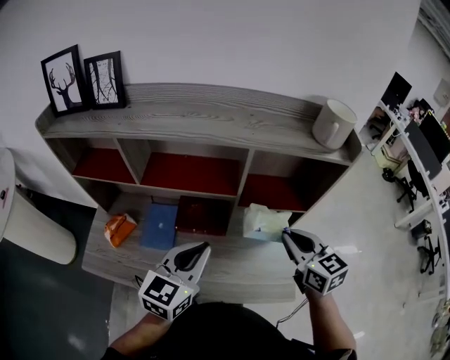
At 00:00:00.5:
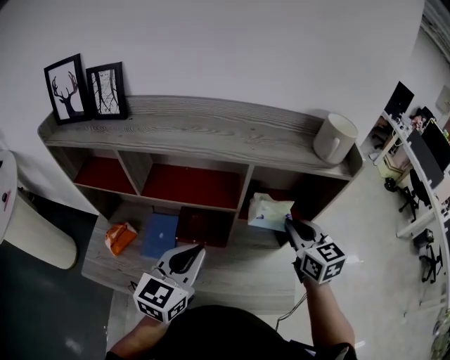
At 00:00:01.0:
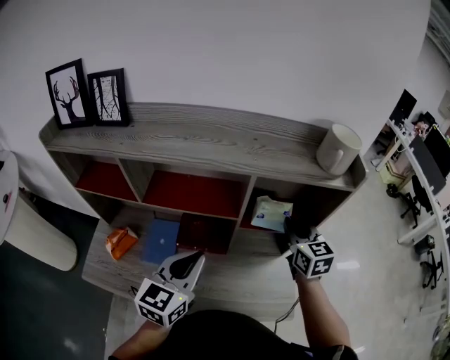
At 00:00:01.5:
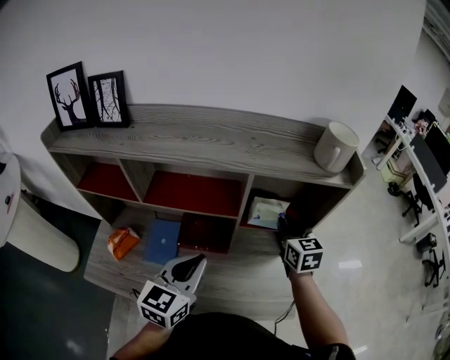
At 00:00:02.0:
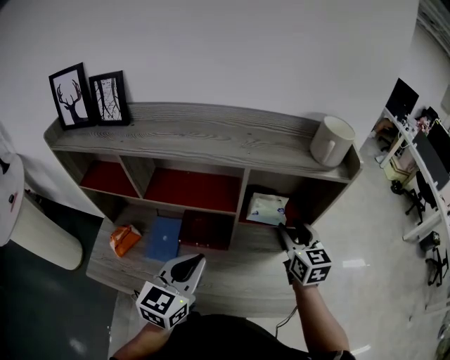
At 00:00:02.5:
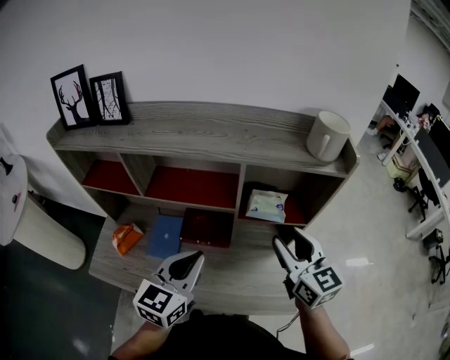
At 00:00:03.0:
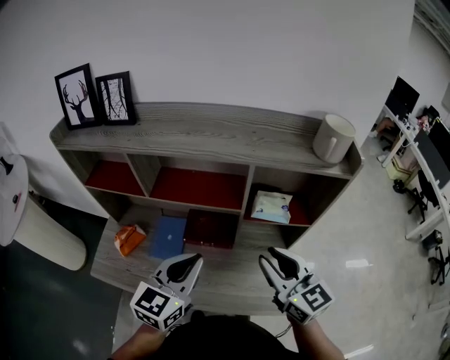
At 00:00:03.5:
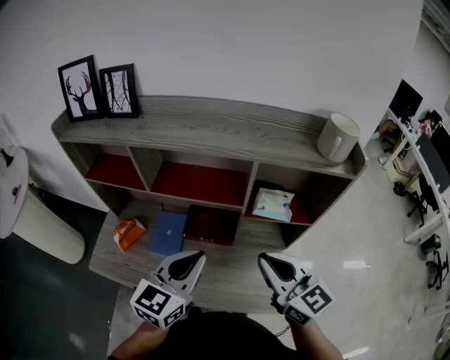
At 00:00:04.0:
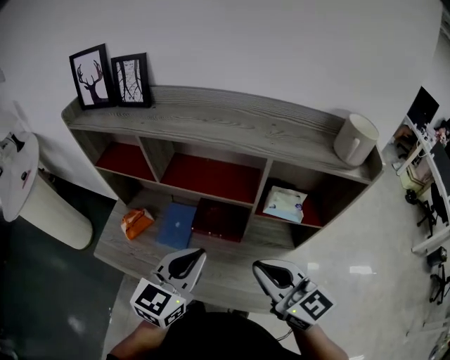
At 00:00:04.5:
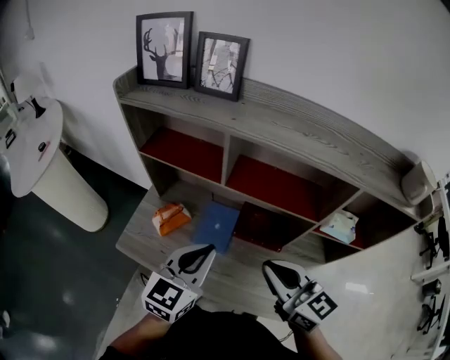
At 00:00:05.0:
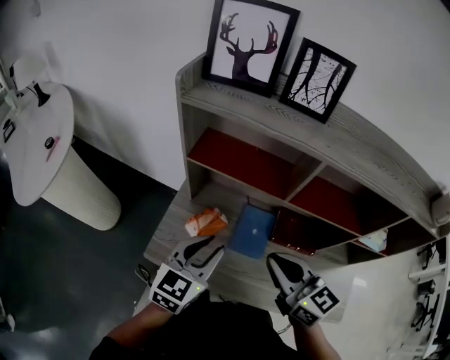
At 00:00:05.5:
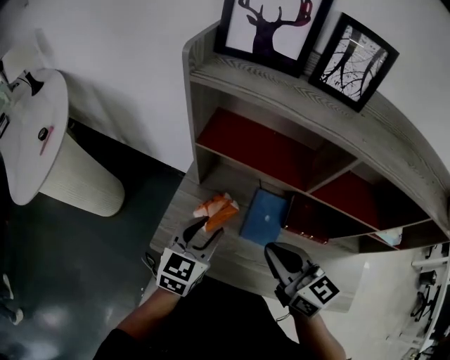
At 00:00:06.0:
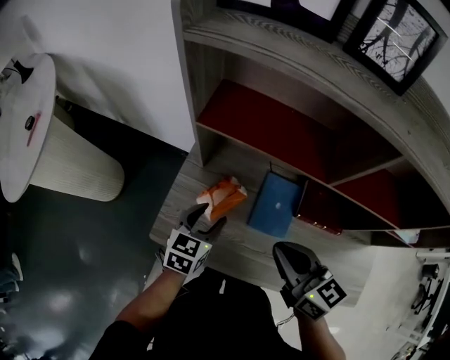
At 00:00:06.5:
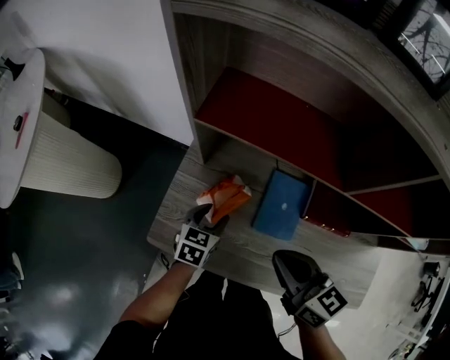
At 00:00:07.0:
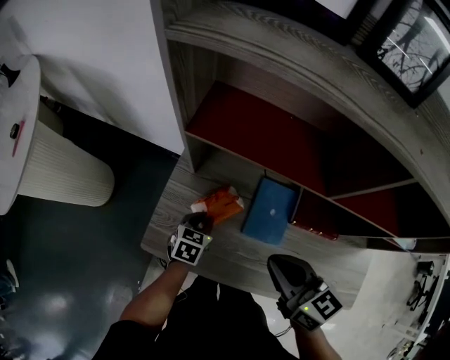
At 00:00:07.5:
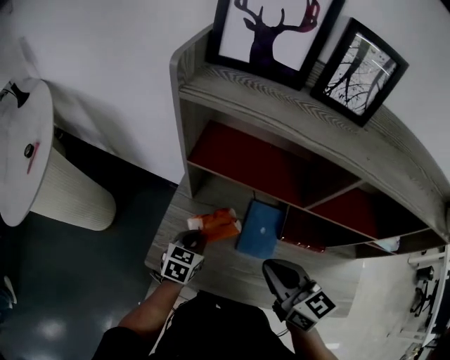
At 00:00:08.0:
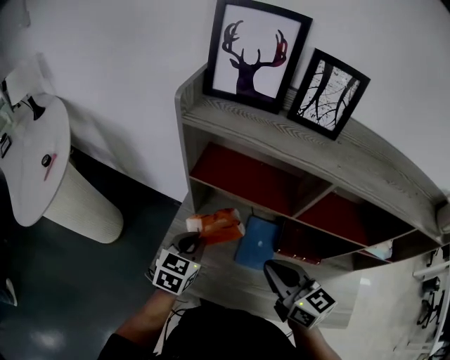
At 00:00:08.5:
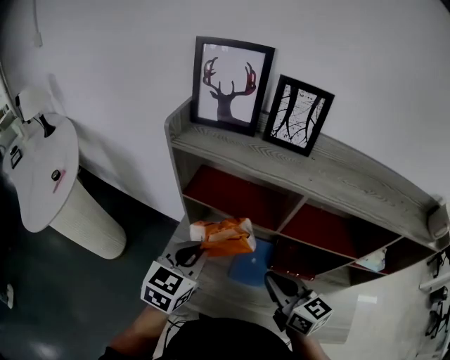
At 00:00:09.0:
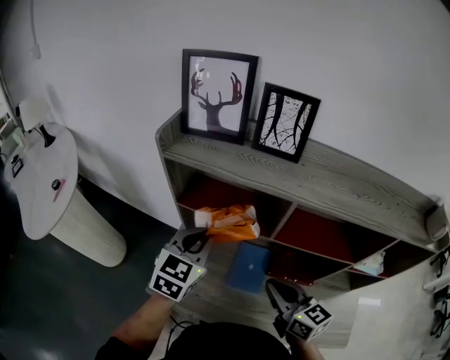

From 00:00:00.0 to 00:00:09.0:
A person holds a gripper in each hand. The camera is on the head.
From 00:00:00.0 to 00:00:02.0: The right gripper shifts approximately 10 cm forward, and opens.
From 00:00:02.0 to 00:00:04.5: The left gripper moves to the left, some 20 cm, while the right gripper travels to the left by roughly 30 cm, rotates some 40 degrees, and closes up.
From 00:00:04.5 to 00:00:07.0: The right gripper travels to the left, downward and forward by about 25 cm; the left gripper moves downward, to the left and forward, some 40 cm, points its fingers some 30 degrees further downward, and opens, then closes again.
From 00:00:07.0 to 00:00:09.0: The left gripper travels upward by approximately 35 cm, and turns by about 30 degrees. Meanwhile the right gripper travels upward and to the right by about 10 cm.

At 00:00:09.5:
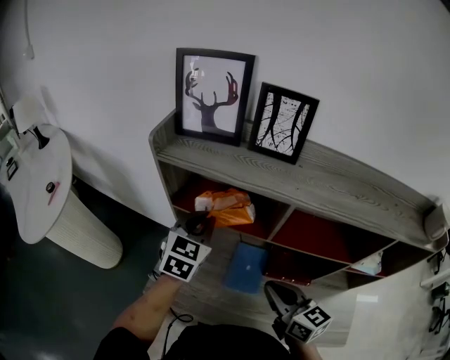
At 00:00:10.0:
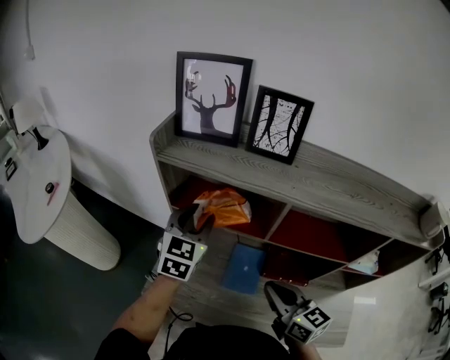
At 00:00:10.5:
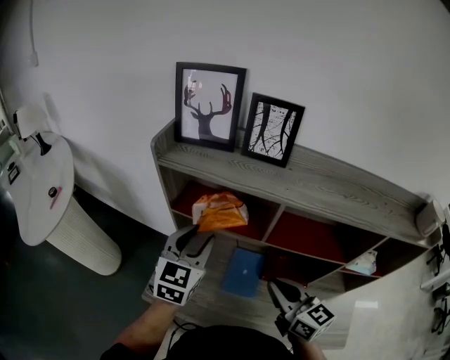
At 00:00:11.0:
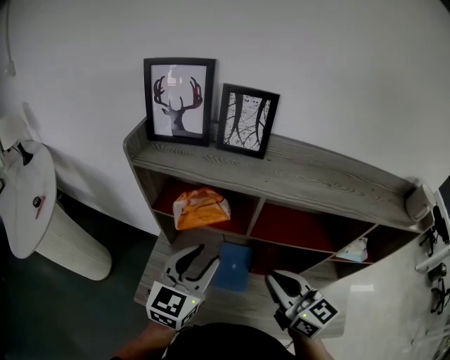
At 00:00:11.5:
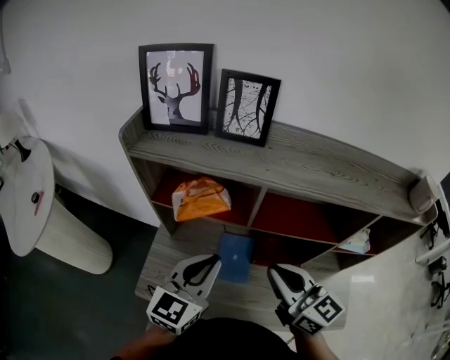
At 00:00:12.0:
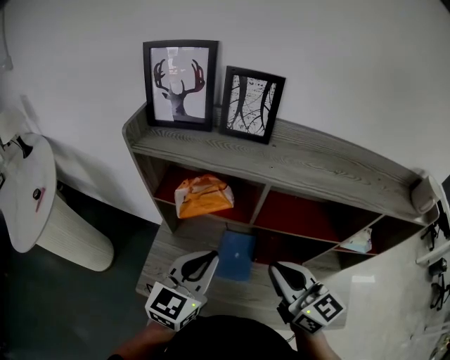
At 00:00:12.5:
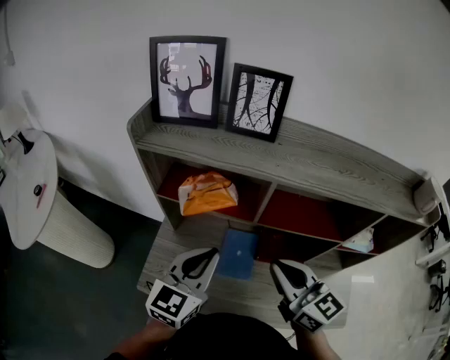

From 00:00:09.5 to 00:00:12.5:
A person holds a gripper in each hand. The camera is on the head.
From 00:00:09.5 to 00:00:11.0: The left gripper goes roughly 10 cm backward, and opens up; the right gripper shifts about 5 cm upward.
From 00:00:11.0 to 00:00:12.5: The left gripper closes.

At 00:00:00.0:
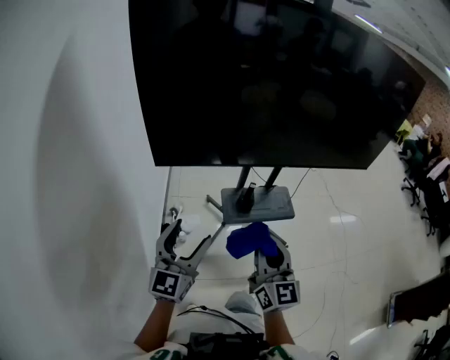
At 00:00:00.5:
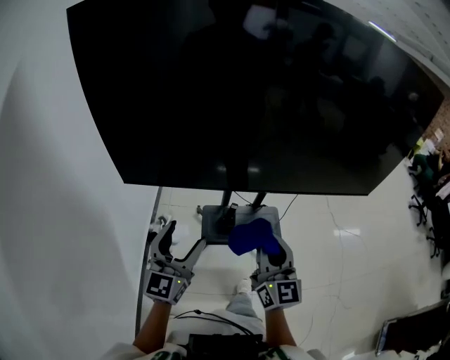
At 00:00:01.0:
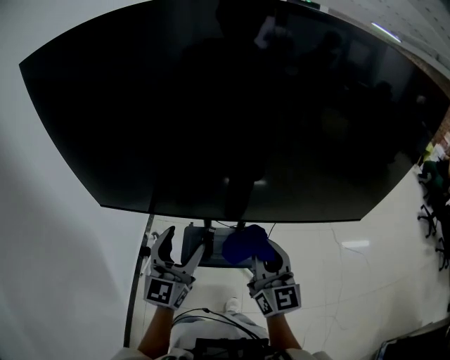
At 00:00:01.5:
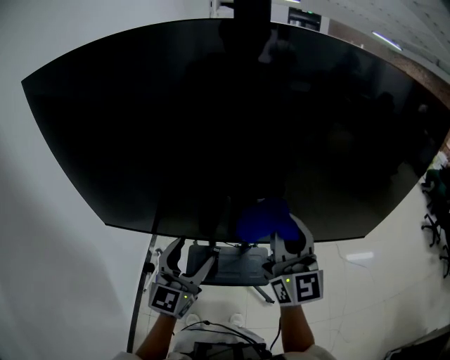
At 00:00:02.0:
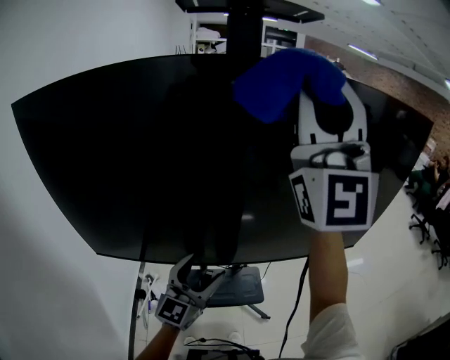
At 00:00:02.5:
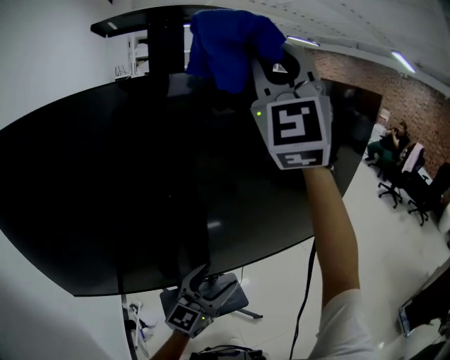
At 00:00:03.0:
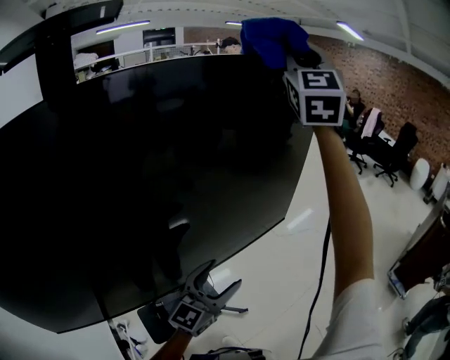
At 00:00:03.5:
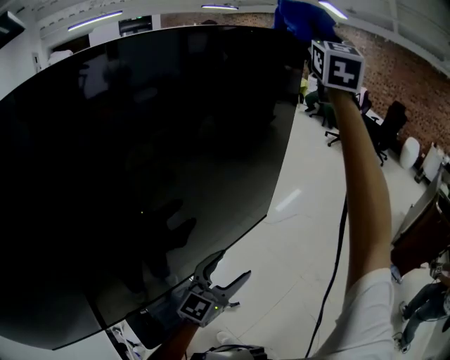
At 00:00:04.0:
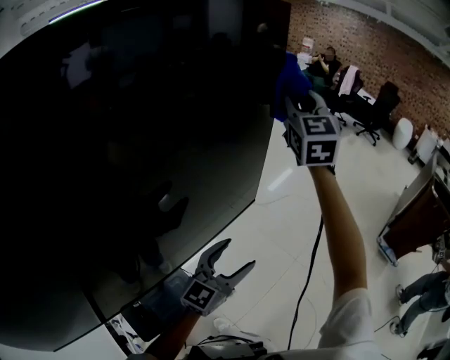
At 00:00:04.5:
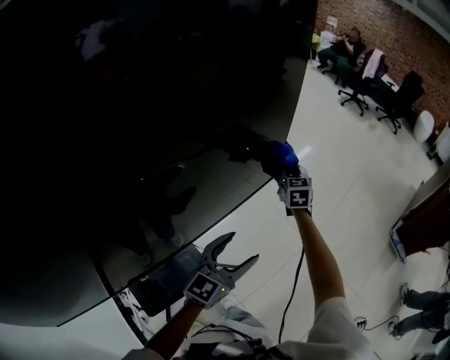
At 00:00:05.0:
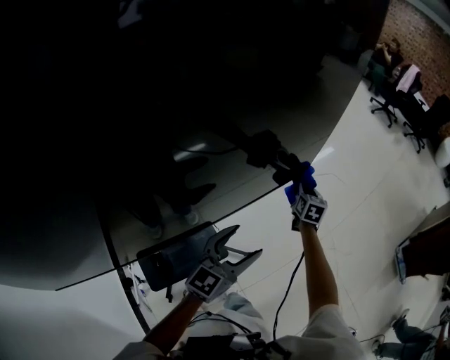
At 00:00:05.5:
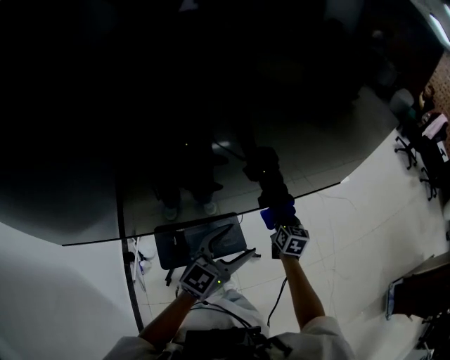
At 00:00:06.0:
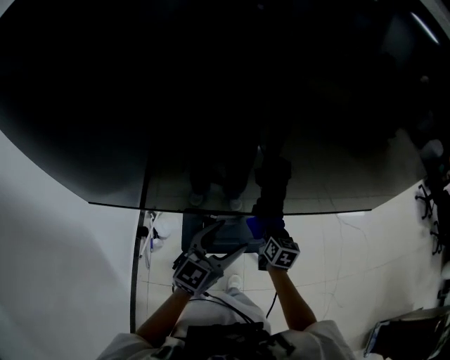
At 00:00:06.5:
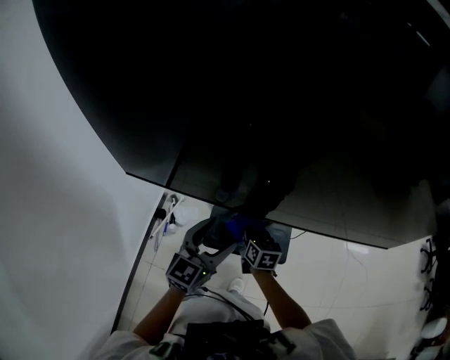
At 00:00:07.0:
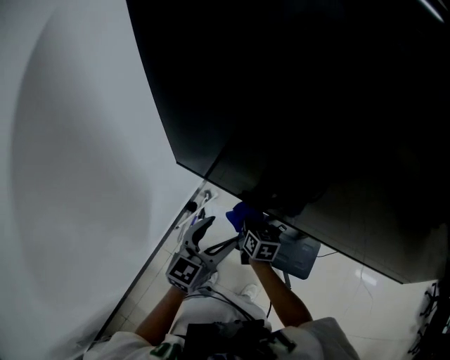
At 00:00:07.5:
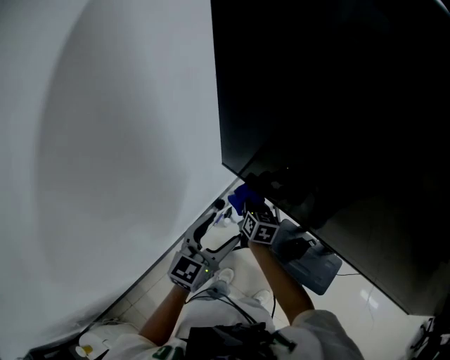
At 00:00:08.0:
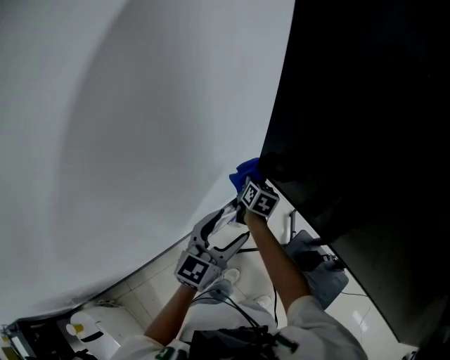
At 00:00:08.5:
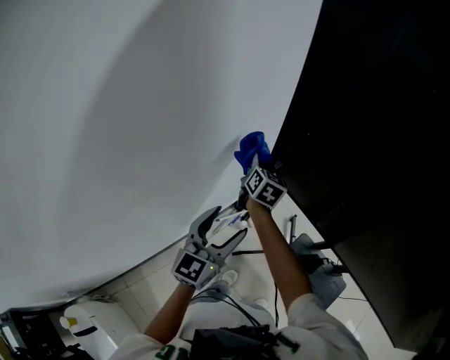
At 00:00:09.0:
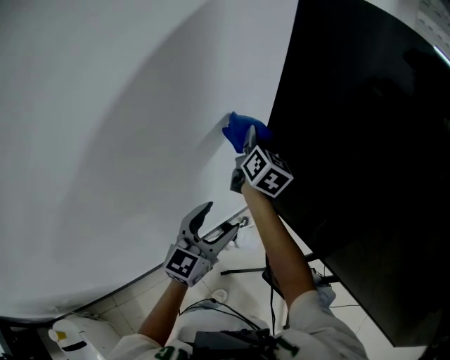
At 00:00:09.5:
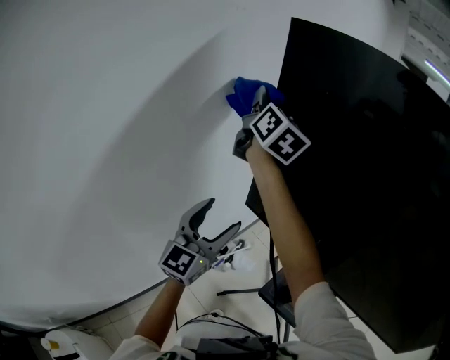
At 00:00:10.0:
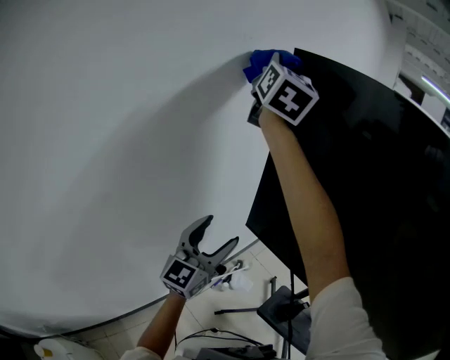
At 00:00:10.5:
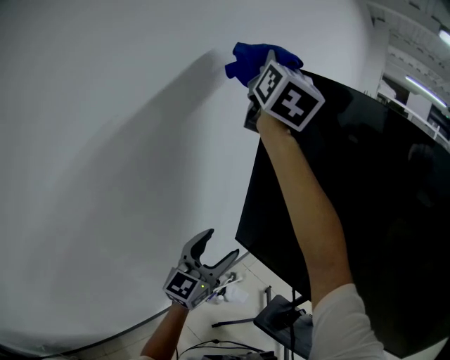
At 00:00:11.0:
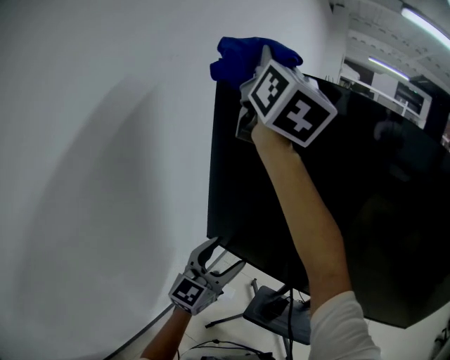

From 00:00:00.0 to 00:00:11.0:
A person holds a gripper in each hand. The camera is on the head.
From 00:00:00.0 to 00:00:02.0: The right gripper travels upward, forward and to the right by approximately 60 cm, and tips its fingers upward by roughly 40 degrees, while the left gripper travels to the right and forward by about 40 cm.
From 00:00:02.0 to 00:00:03.5: The right gripper moves approximately 60 cm, and swivels roughly 60 degrees. Meanwhile the left gripper shifts by approximately 40 cm, and turns by some 50 degrees.
From 00:00:03.5 to 00:00:05.5: The left gripper moves about 20 cm, and swivels some 20 degrees; the right gripper is displaced downward by some 80 cm, and points its fingers about 50 degrees further downward.
From 00:00:05.5 to 00:00:07.5: The two grippers travel together, roughly 70 cm. The right gripper rotates roughly 60 degrees, while the left gripper turns by some 60 degrees.
From 00:00:07.5 to 00:00:09.0: The right gripper travels upward and to the left by roughly 35 cm, and tips its fingers upward by roughly 30 degrees, while the left gripper shifts roughly 15 cm to the left and upward.
From 00:00:09.0 to 00:00:11.0: The left gripper is displaced to the right and upward by some 10 cm, and turns by approximately 20 degrees, while the right gripper moves upward, approximately 40 cm, and changes its angle by about 40 degrees.

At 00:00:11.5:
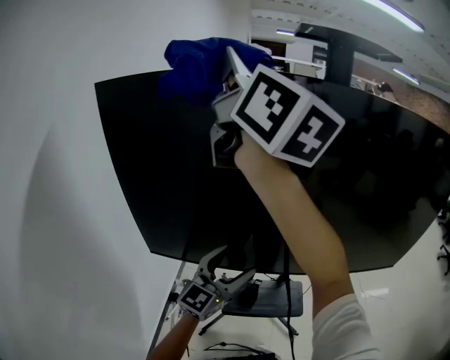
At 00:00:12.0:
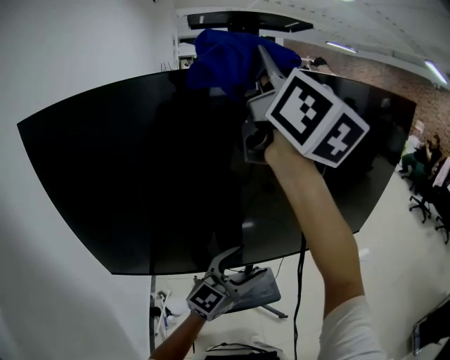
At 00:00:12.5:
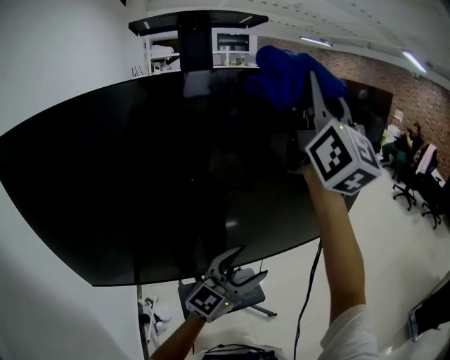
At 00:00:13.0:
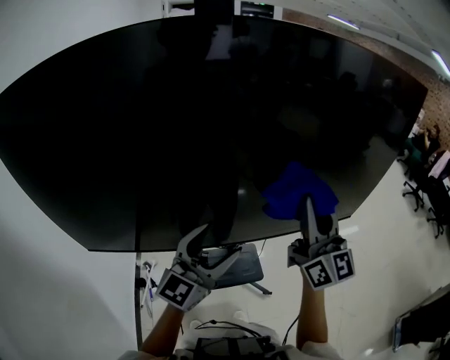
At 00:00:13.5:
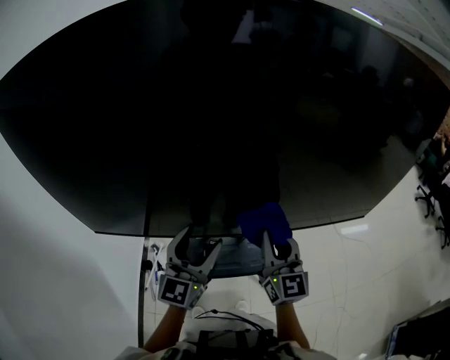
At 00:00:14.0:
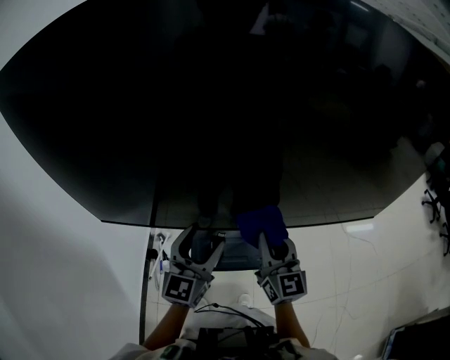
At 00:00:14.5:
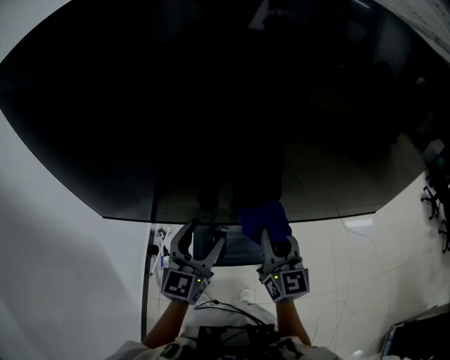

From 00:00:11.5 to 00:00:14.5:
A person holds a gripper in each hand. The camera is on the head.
From 00:00:11.5 to 00:00:13.0: The left gripper ends up about 20 cm from where it was, while the right gripper ends up approximately 50 cm from where it was, and changes its angle by roughly 40 degrees.
From 00:00:13.0 to 00:00:14.5: The right gripper goes some 25 cm downward and to the left, and changes its angle by roughly 20 degrees, while the left gripper heads to the left and downward, covering some 15 cm, and swivels roughly 30 degrees.
